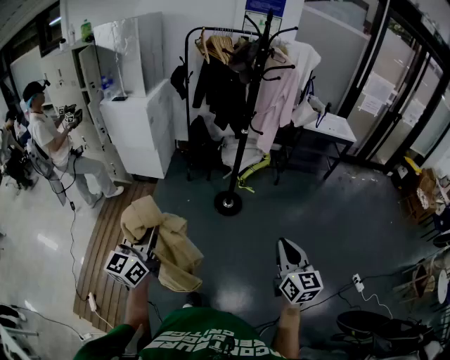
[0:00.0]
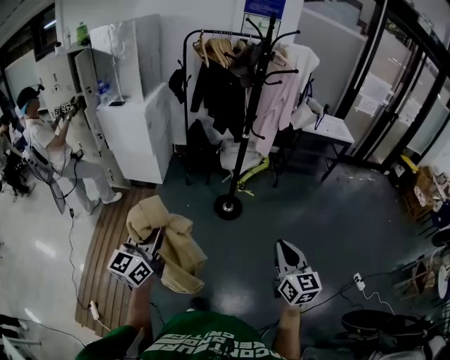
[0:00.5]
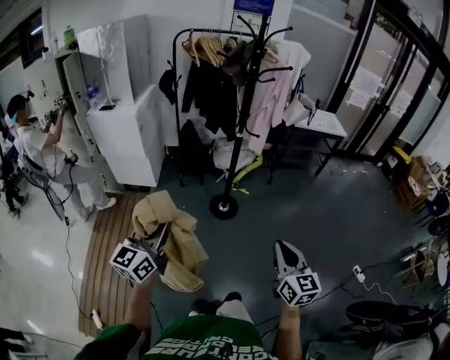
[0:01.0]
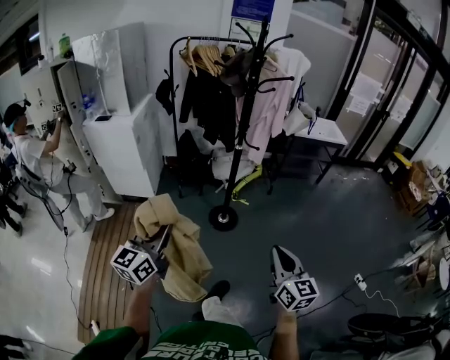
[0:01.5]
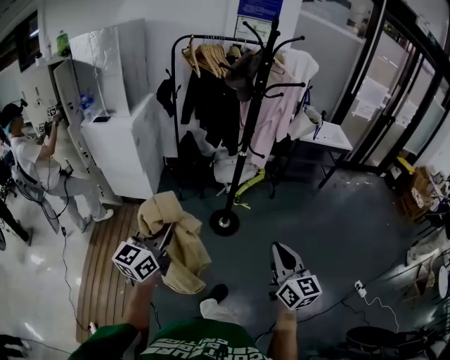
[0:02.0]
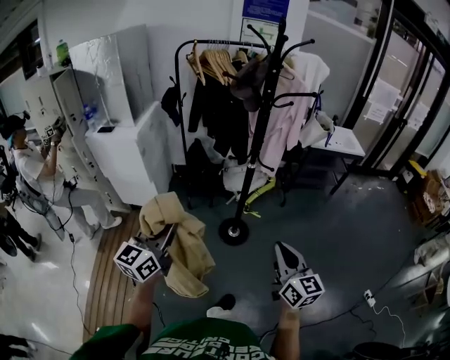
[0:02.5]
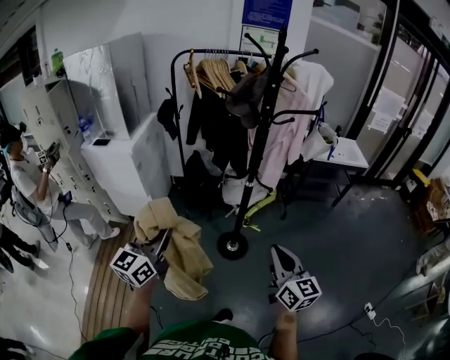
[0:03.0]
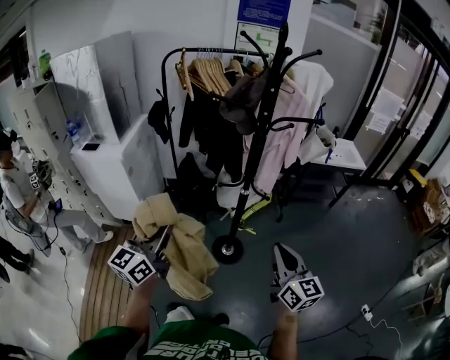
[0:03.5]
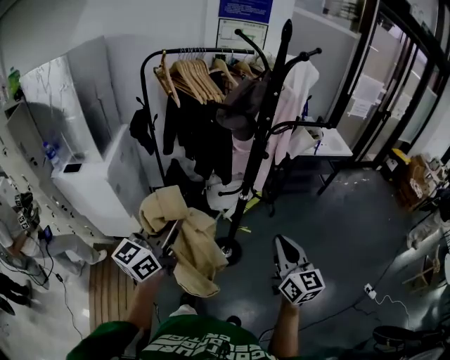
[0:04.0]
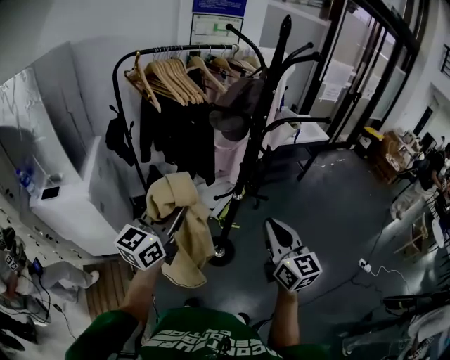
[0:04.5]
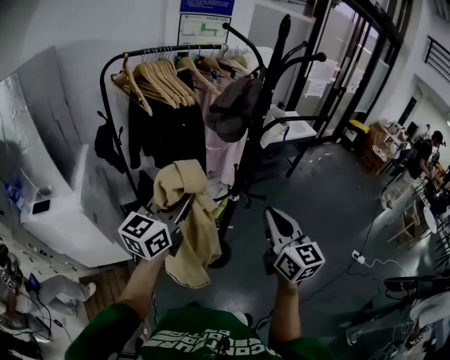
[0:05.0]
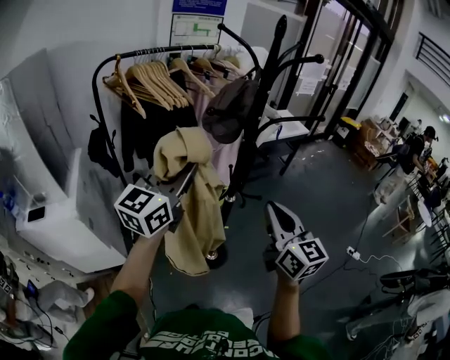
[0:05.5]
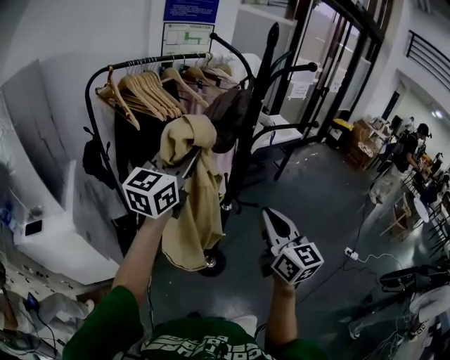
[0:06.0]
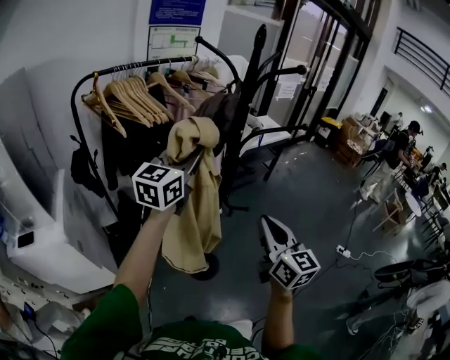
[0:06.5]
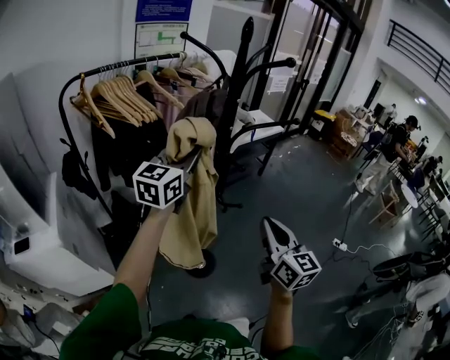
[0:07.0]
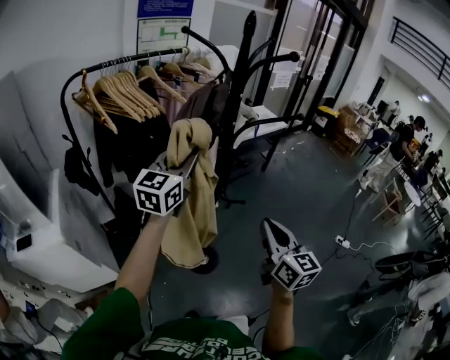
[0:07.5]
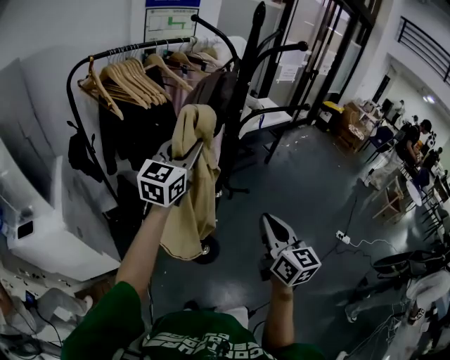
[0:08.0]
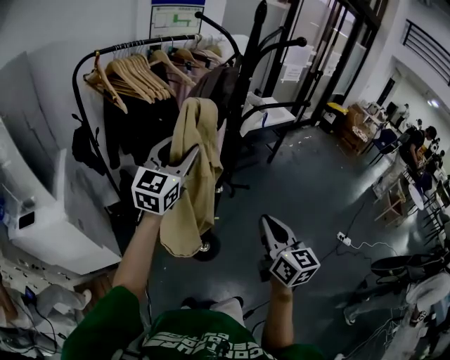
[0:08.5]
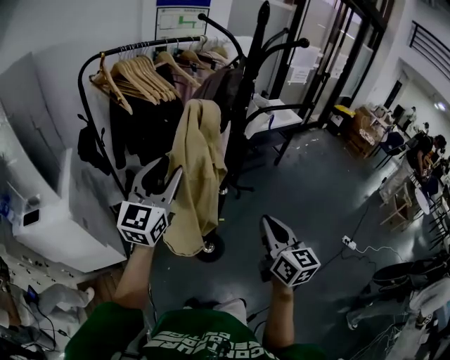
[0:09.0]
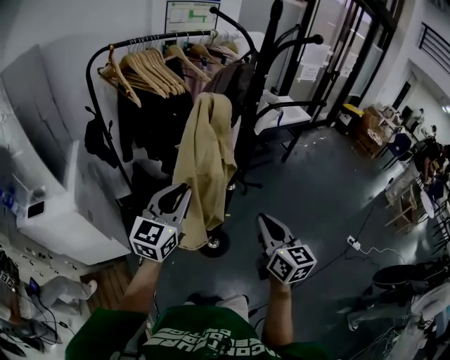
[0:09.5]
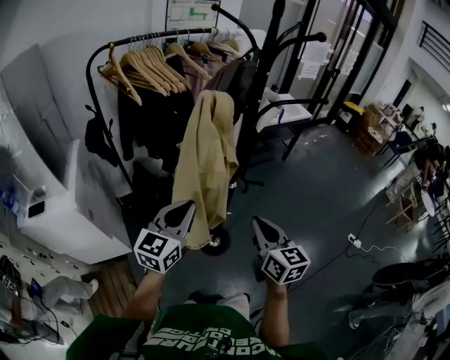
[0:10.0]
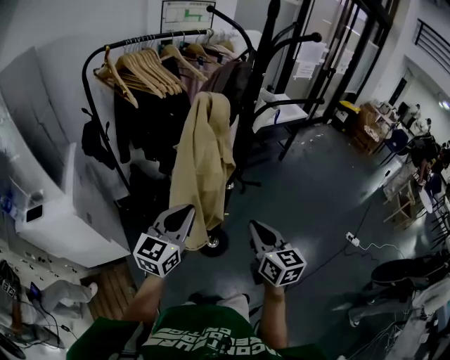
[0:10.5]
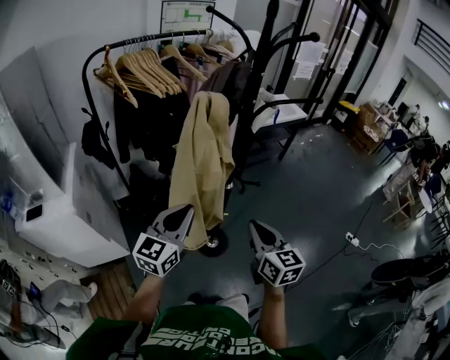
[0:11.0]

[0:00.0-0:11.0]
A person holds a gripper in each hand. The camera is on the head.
0:00.0 to 0:02.0: The right gripper goes roughly 15 cm forward and to the left, while the left gripper shifts about 20 cm forward.
0:02.0 to 0:03.5: Both grippers move forward, about 25 cm.
0:03.5 to 0:05.5: The left gripper changes place by approximately 30 cm, and turns by roughly 30 degrees. The right gripper ends up approximately 20 cm from where it was, and changes its angle by approximately 20 degrees.
0:05.5 to 0:07.5: The left gripper moves forward and to the right, some 15 cm. Meanwhile the right gripper is displaced to the right by some 5 cm.
0:07.5 to 0:09.0: The left gripper shifts about 15 cm backward and to the left, and opens its fingers.
0:09.0 to 0:11.0: The left gripper shifts roughly 15 cm downward and backward, and closes its fingers, while the right gripper moves downward, about 5 cm.

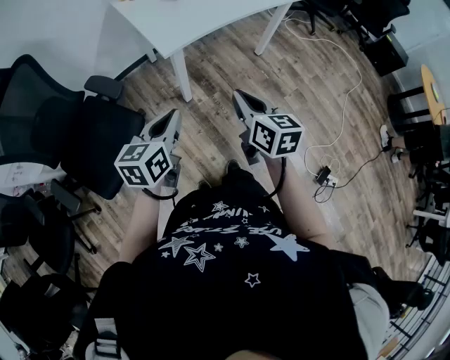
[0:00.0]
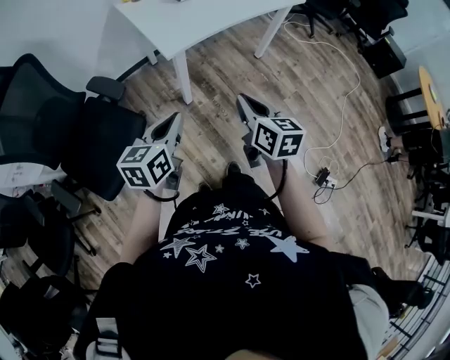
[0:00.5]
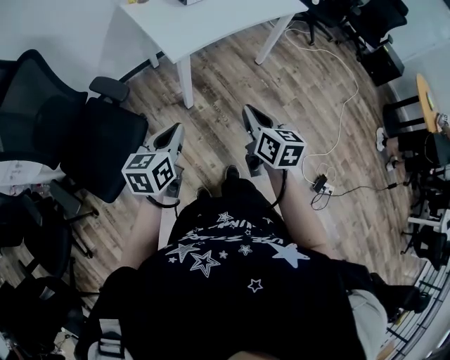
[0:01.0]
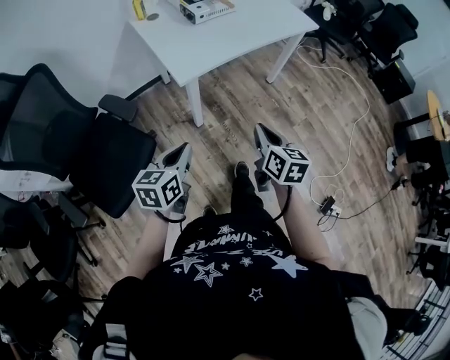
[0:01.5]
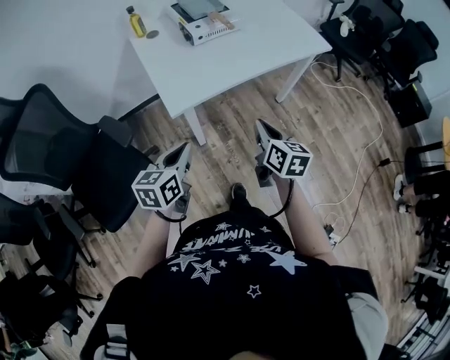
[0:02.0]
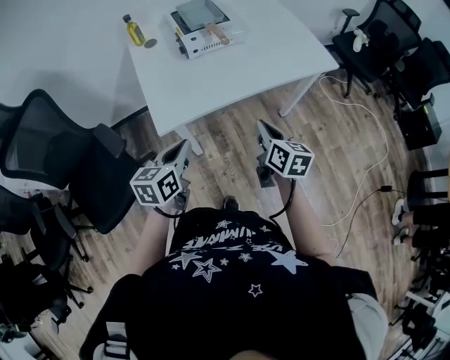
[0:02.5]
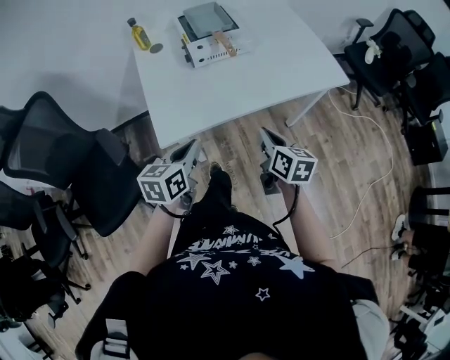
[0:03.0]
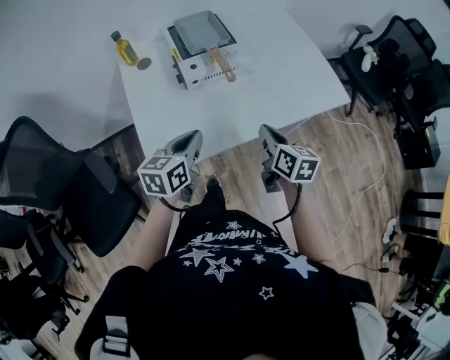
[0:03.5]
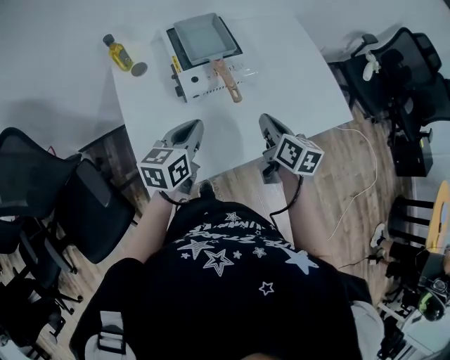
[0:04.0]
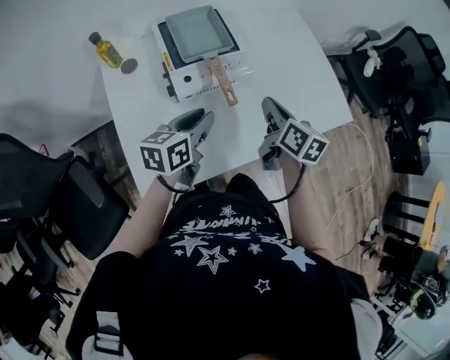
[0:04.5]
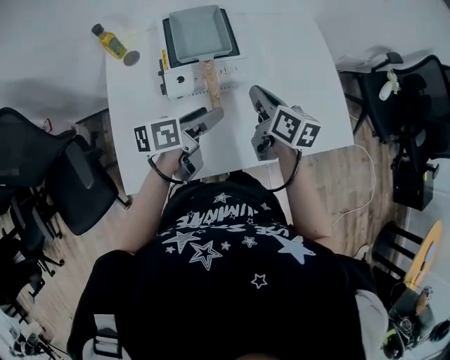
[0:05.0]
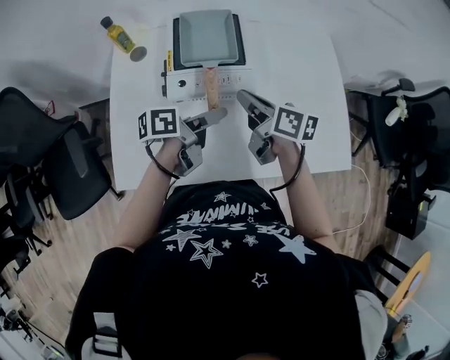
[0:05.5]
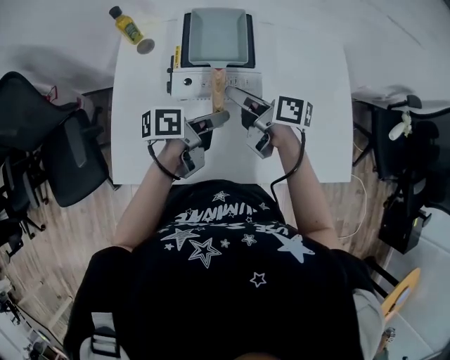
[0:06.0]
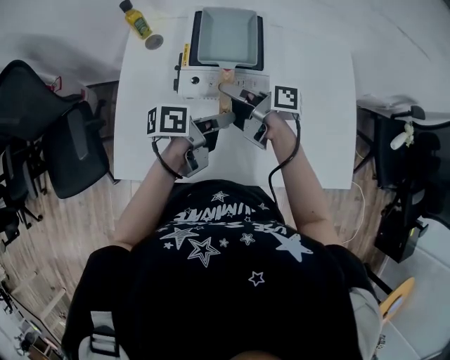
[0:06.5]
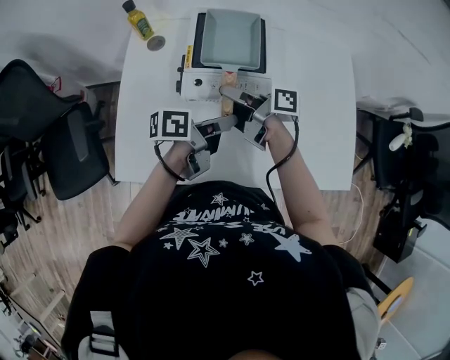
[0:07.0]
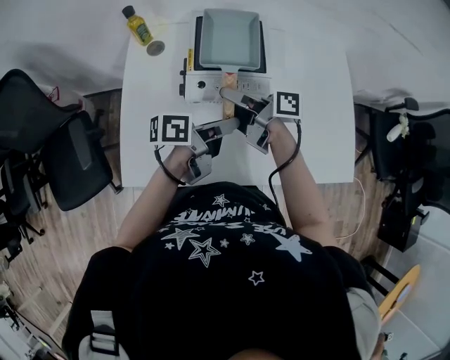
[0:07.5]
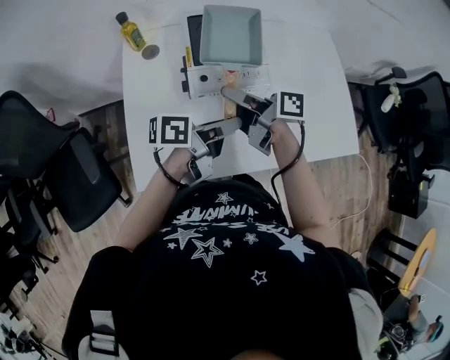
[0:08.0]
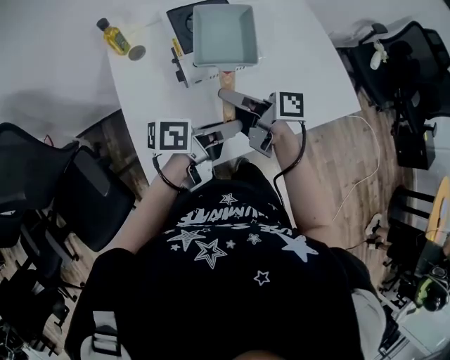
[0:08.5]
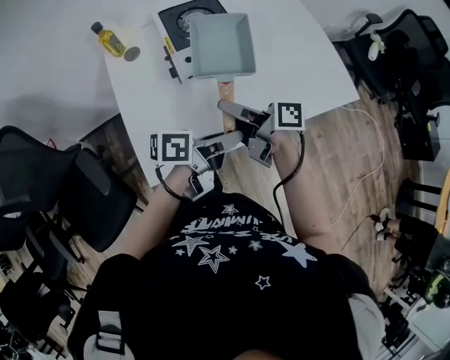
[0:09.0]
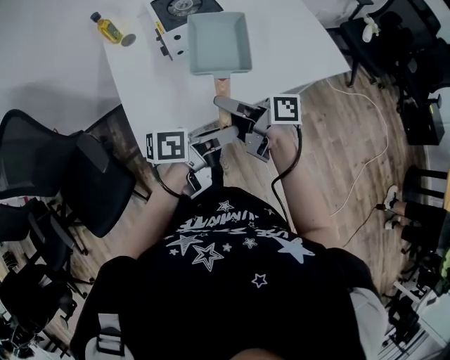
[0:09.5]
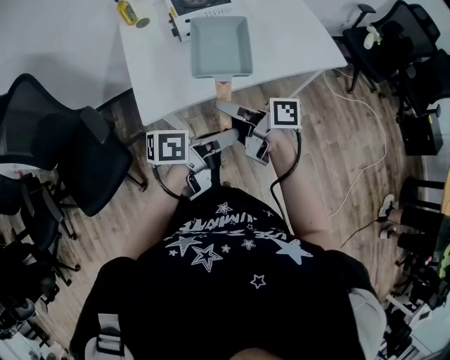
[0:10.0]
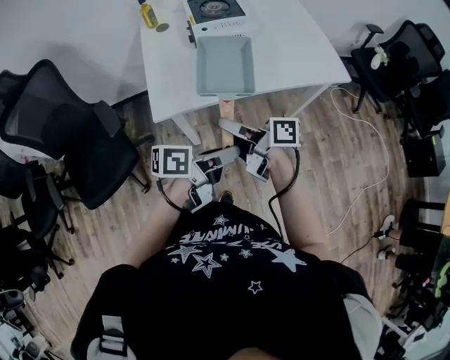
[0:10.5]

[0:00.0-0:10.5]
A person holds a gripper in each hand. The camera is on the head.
0:00.0 to 0:02.0: The left gripper travels forward by some 15 cm. Meanwhile the right gripper travels forward and to the right by some 20 cm.
0:02.0 to 0:04.0: The grippers both shift forward by about 40 cm.
0:04.0 to 0:06.5: The left gripper moves some 15 cm, rotates around the line of its fingers by about 50 degrees, counterclockwise from behind, and opens, then closes again; the right gripper moves some 20 cm, turns by some 70 degrees, and opens up.
0:06.5 to 0:08.5: The left gripper ends up about 15 cm from where it was, and swivels roughly 30 degrees. Meanwhile the right gripper shifts by about 15 cm, and changes its angle by roughly 20 degrees.
0:08.5 to 0:10.5: The right gripper shifts by roughly 35 cm; the left gripper shifts by approximately 30 cm.

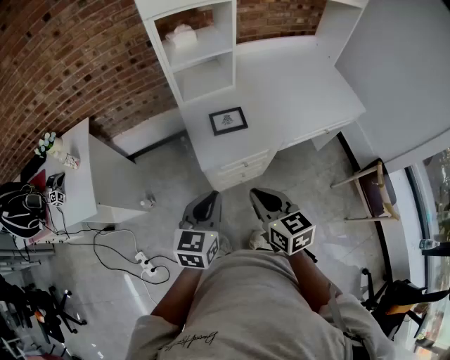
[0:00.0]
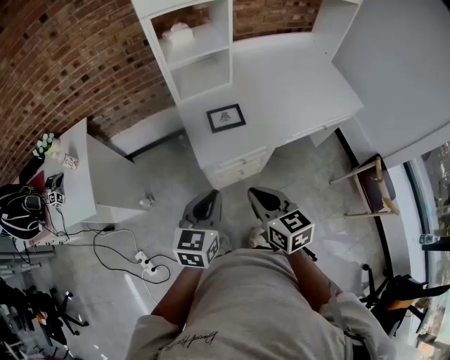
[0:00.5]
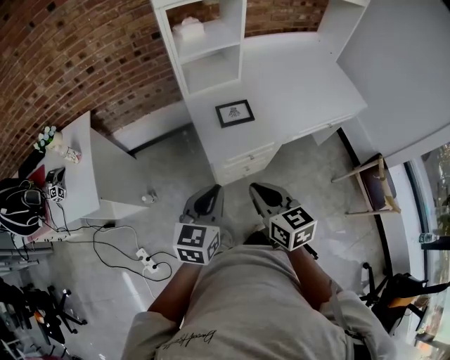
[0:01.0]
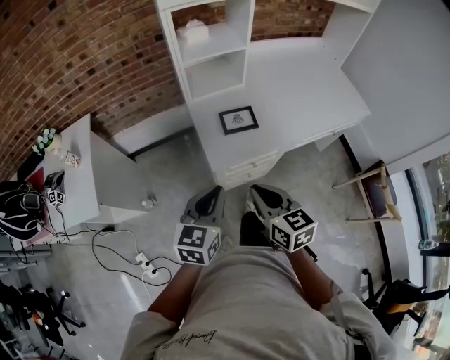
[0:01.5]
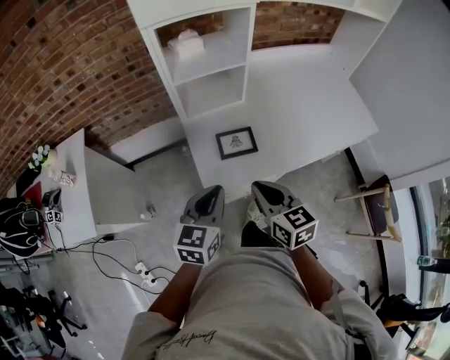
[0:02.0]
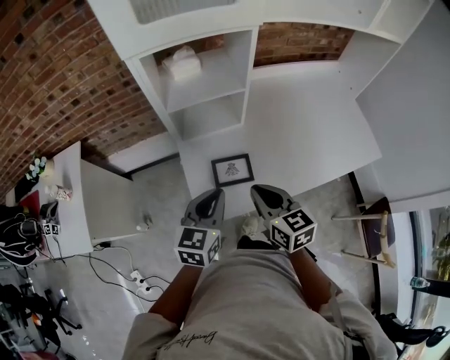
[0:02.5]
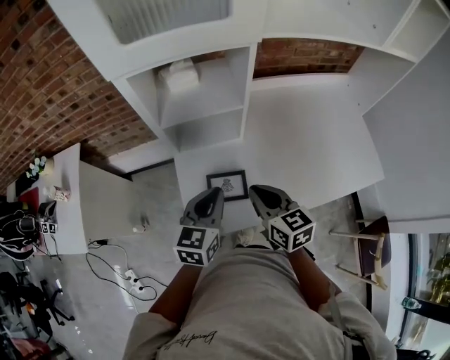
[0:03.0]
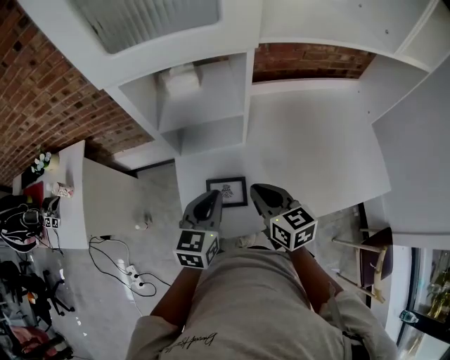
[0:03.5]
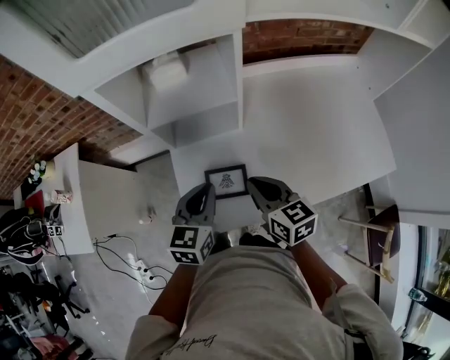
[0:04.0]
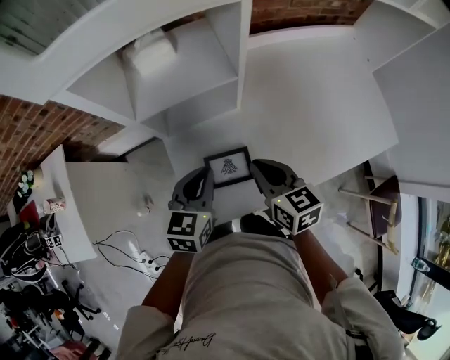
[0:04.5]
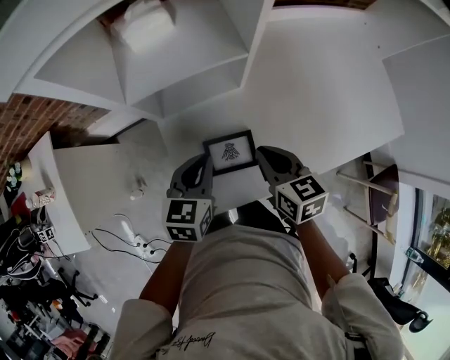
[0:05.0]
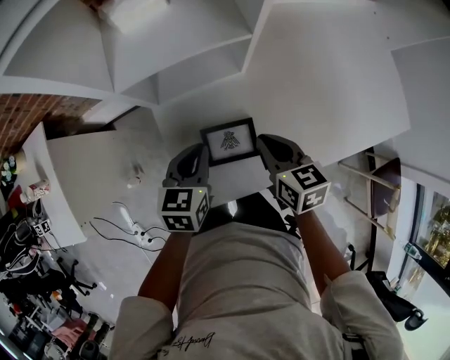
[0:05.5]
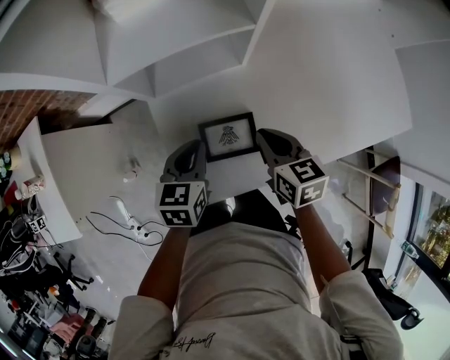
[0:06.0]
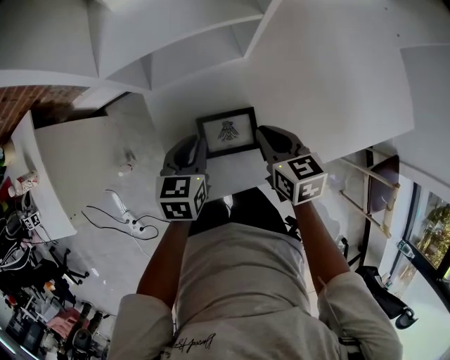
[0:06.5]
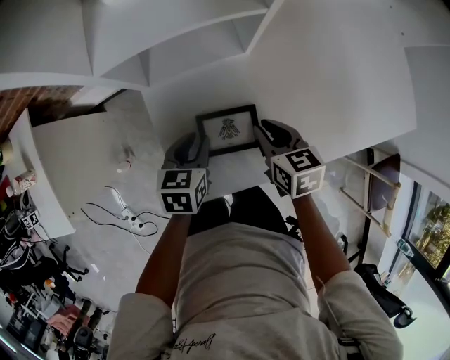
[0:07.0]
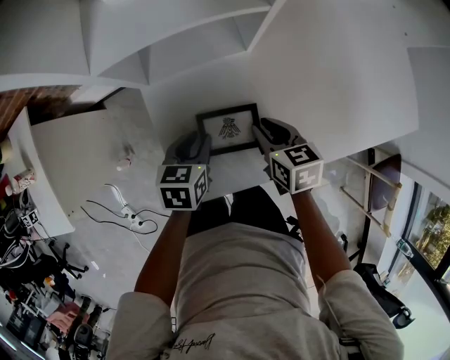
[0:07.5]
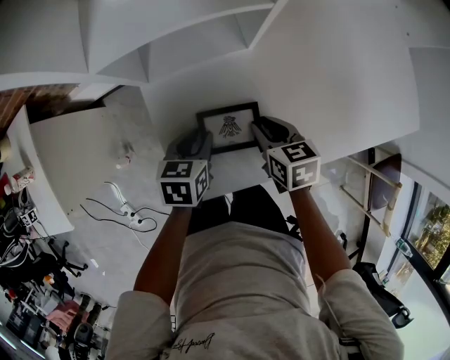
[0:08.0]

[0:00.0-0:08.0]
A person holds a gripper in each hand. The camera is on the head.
0:00.0 to 0:02.0: Both grippers travel together forward, approximately 15 cm.
0:02.0 to 0:04.0: The grippers both shift forward and to the right by roughly 20 cm.
0:04.0 to 0:06.0: The two grippers go about 15 cm downward.
0:06.0 to 0:08.0: The two grippers go roughly 10 cm downward. The left gripper opens.
